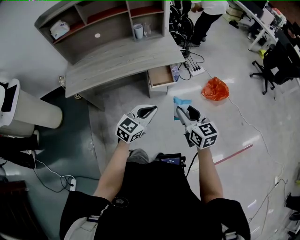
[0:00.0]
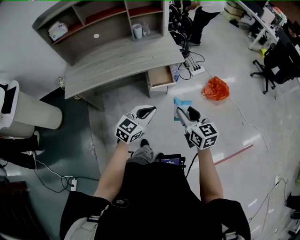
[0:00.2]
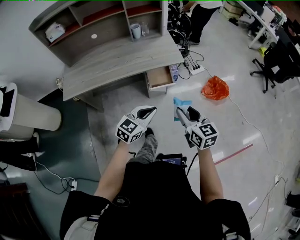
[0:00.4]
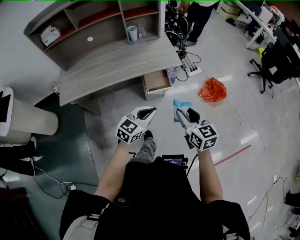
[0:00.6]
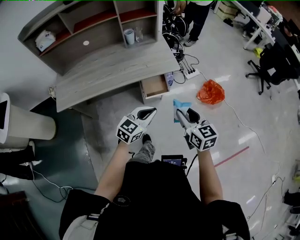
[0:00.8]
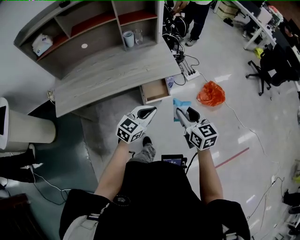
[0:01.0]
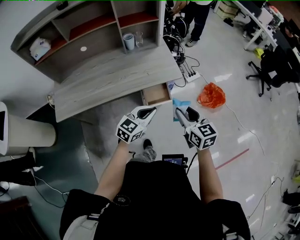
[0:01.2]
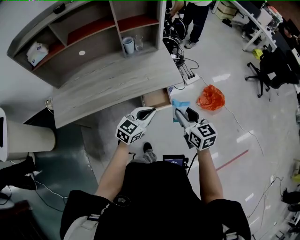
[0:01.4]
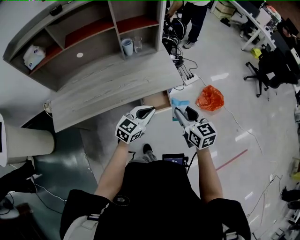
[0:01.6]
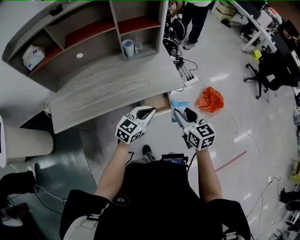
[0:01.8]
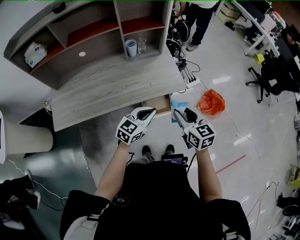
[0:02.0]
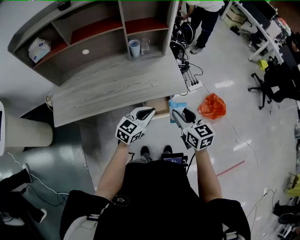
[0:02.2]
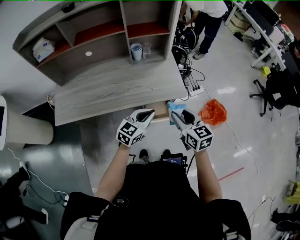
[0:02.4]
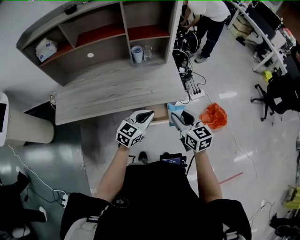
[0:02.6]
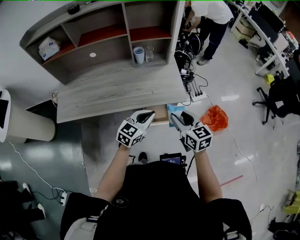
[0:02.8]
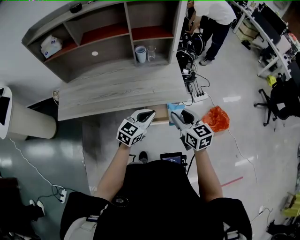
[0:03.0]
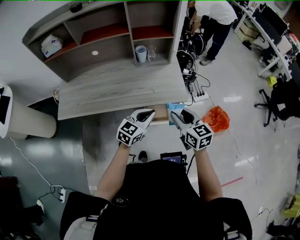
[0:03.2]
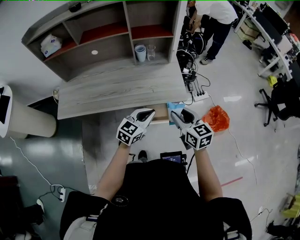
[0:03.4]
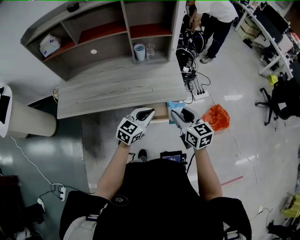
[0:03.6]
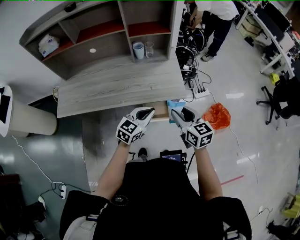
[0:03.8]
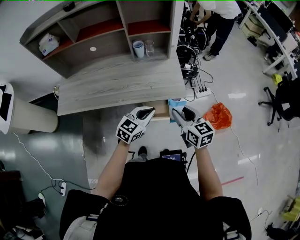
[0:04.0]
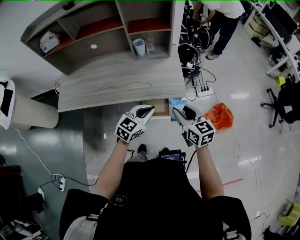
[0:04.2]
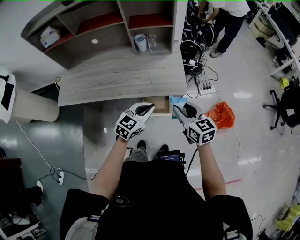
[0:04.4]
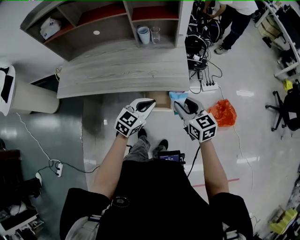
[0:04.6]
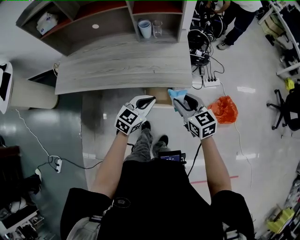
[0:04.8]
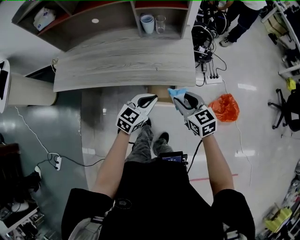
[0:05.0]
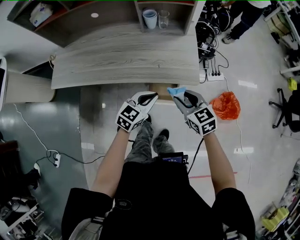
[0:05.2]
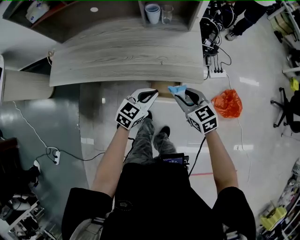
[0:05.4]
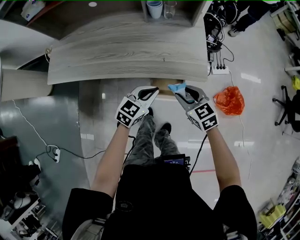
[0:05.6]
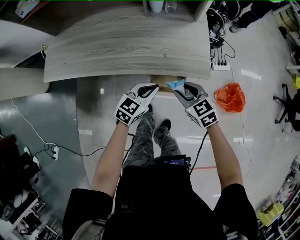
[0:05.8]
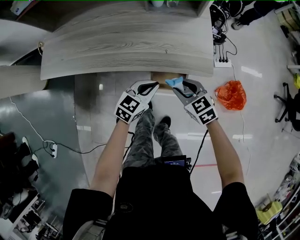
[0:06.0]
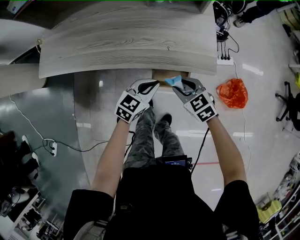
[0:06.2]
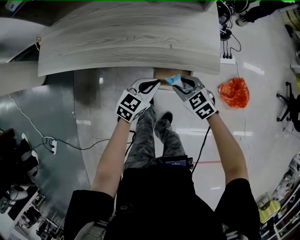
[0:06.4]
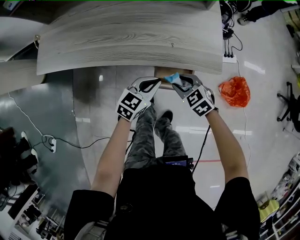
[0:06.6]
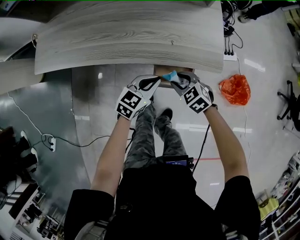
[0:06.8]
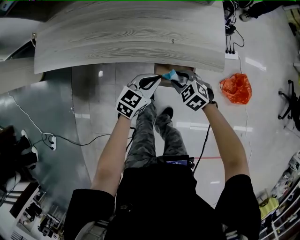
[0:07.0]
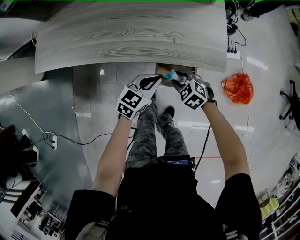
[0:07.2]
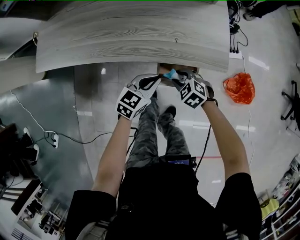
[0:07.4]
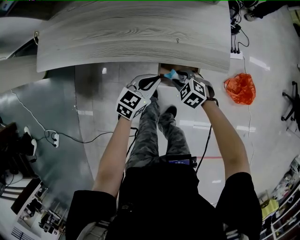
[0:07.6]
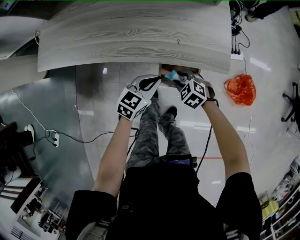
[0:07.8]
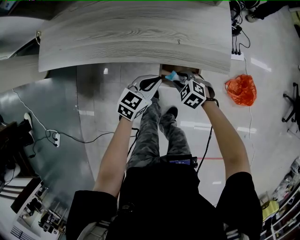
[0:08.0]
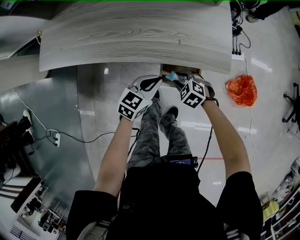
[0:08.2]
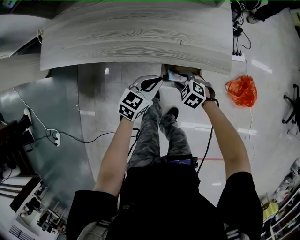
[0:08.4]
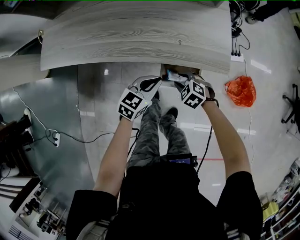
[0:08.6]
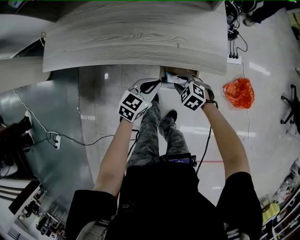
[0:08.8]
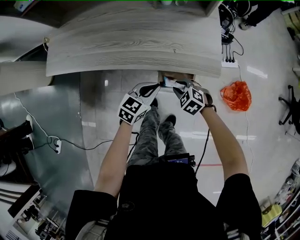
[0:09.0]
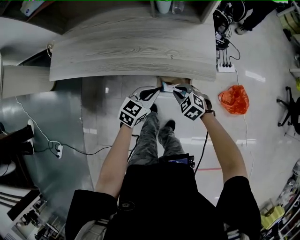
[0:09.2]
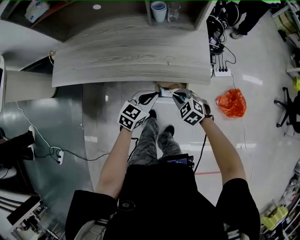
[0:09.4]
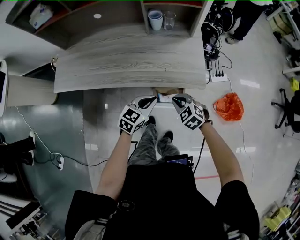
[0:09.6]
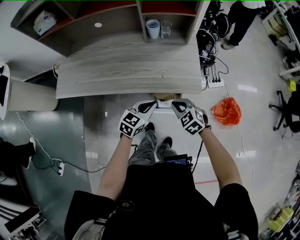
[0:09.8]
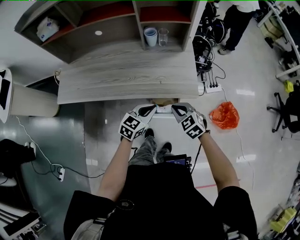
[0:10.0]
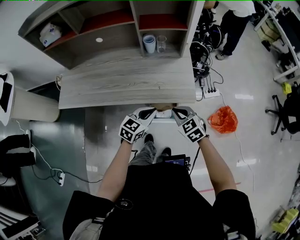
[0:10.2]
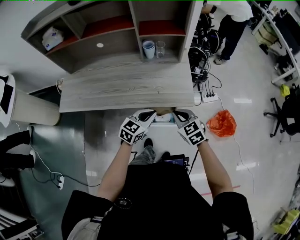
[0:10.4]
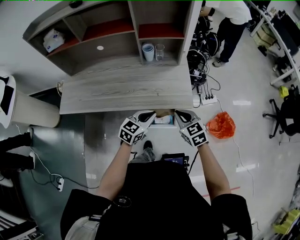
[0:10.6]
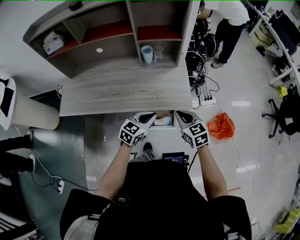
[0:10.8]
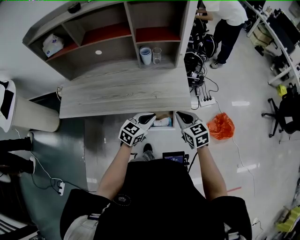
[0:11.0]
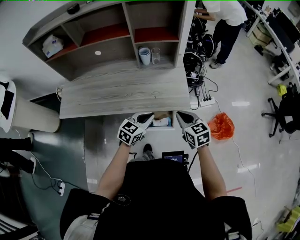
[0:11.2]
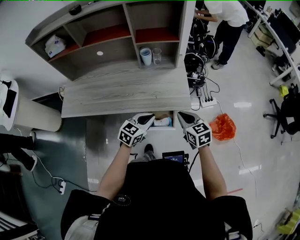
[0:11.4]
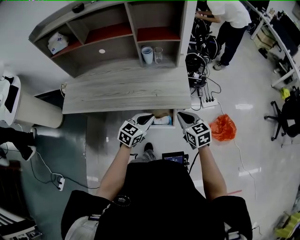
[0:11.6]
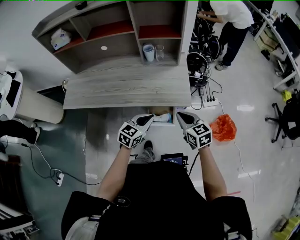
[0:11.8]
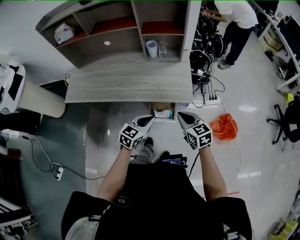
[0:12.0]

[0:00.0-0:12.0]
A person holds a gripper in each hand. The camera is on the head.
0:00.0 to 0:01.6: The two grippers go approximately 25 cm forward.
0:01.6 to 0:03.0: The right gripper travels forward by roughly 5 cm.
0:03.0 to 0:04.4: Both grippers travel together to the right, roughly 5 cm.
0:04.4 to 0:06.0: The left gripper shifts approximately 15 cm downward; the right gripper goes roughly 20 cm downward and to the left, and rotates some 30 degrees.
0:06.0 to 0:07.6: The right gripper heads downward, covering approximately 15 cm, and turns by approximately 30 degrees. Meanwhile the left gripper is displaced downward by some 5 cm.
0:07.6 to 0:09.0: The grippers move only a little.
0:09.0 to 0:10.4: The left gripper moves upward, roughly 15 cm. Meanwhile the right gripper goes some 20 cm upward, turns by some 30 degrees, and closes up.
0:10.4 to 0:12.0: The left gripper moves backward, approximately 5 cm. Meanwhile the right gripper moves to the right, about 5 cm.

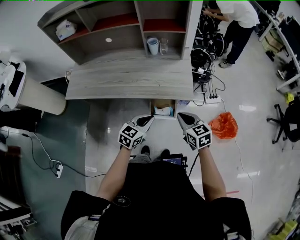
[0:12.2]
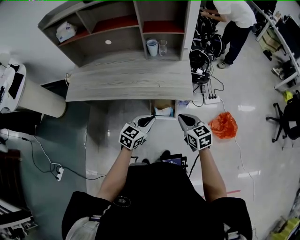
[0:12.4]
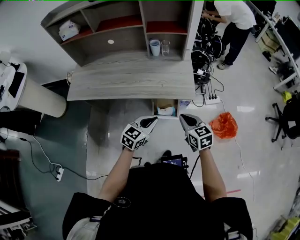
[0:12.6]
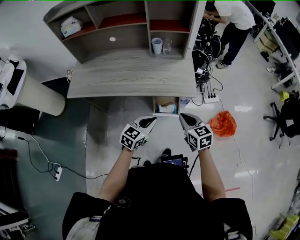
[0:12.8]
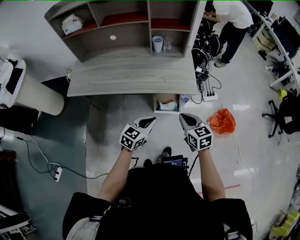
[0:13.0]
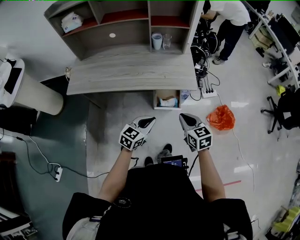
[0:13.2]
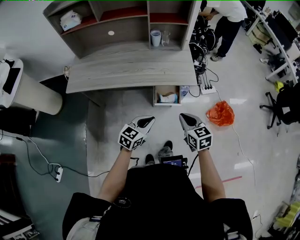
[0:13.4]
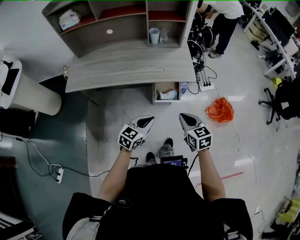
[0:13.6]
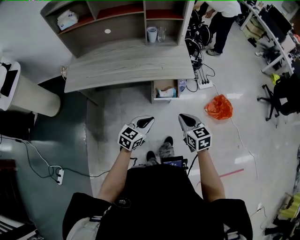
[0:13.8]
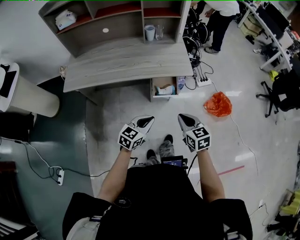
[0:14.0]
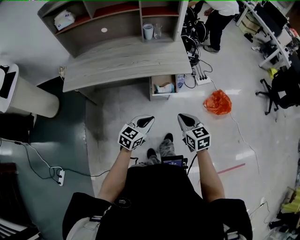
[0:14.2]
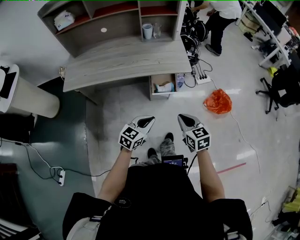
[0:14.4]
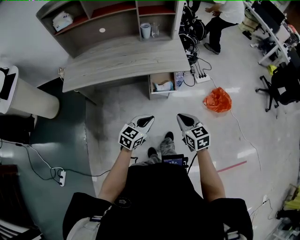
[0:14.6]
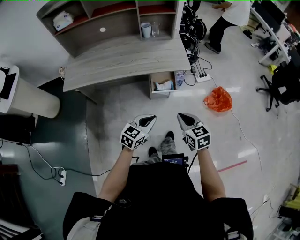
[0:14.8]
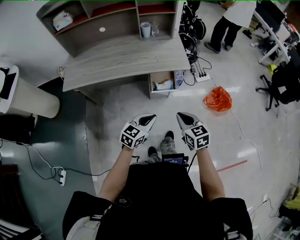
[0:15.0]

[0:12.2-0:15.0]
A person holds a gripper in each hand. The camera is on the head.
0:12.2 to 0:13.6: The left gripper heads backward and to the left, covering some 15 cm. The right gripper travels backward by approximately 15 cm.
0:13.6 to 0:15.0: Both grippers move backward, some 5 cm.

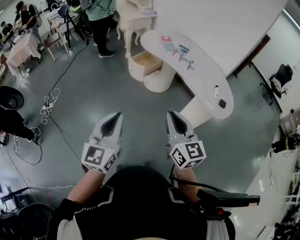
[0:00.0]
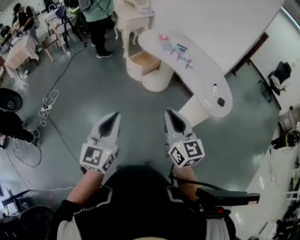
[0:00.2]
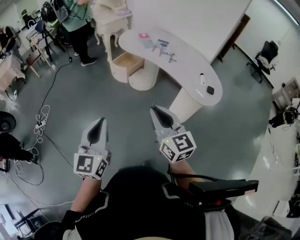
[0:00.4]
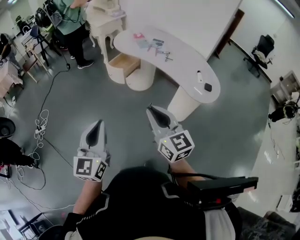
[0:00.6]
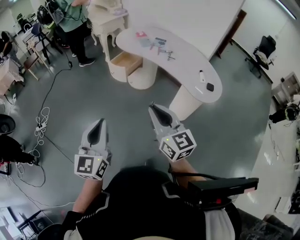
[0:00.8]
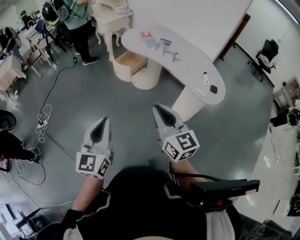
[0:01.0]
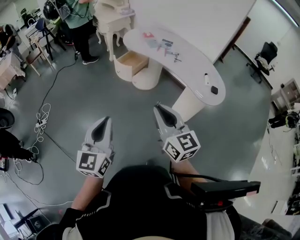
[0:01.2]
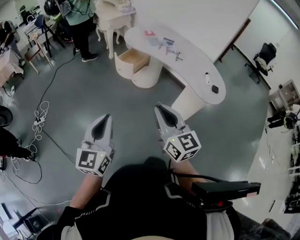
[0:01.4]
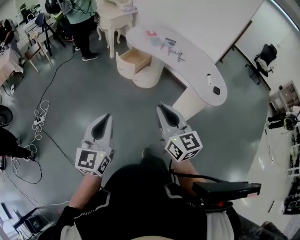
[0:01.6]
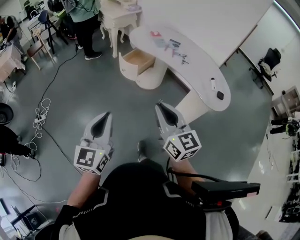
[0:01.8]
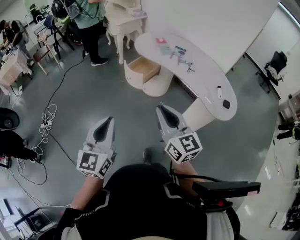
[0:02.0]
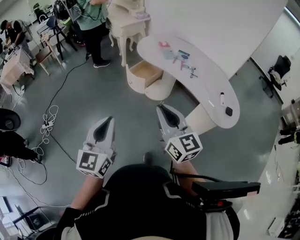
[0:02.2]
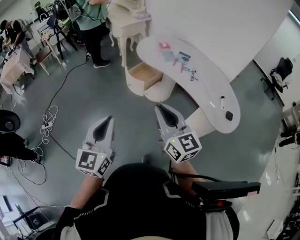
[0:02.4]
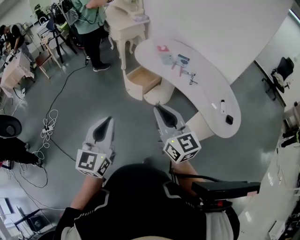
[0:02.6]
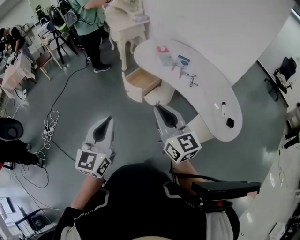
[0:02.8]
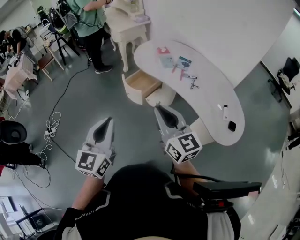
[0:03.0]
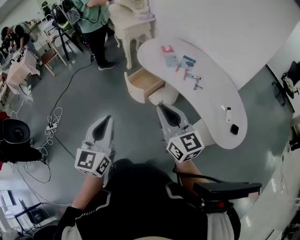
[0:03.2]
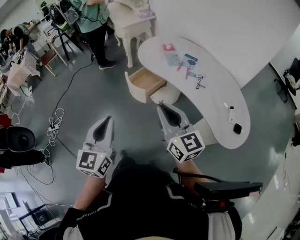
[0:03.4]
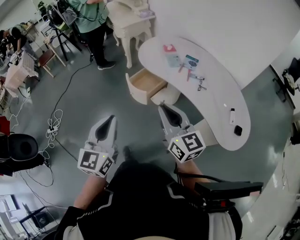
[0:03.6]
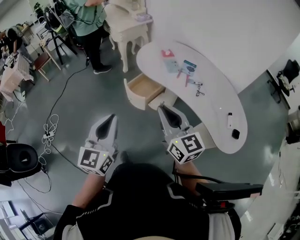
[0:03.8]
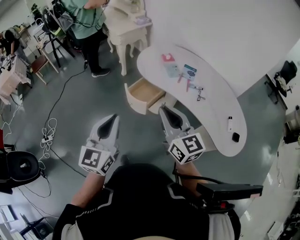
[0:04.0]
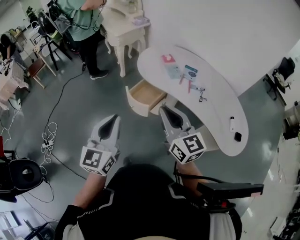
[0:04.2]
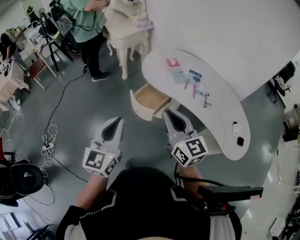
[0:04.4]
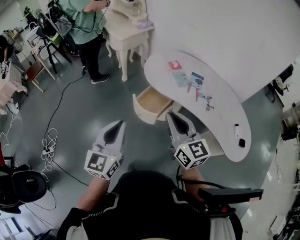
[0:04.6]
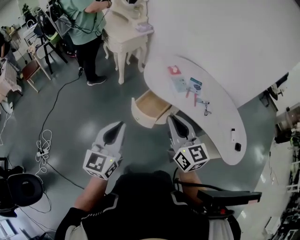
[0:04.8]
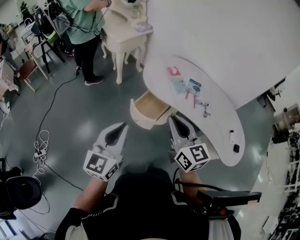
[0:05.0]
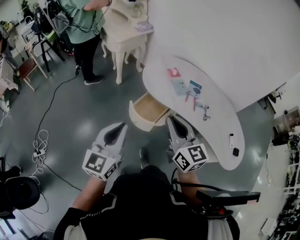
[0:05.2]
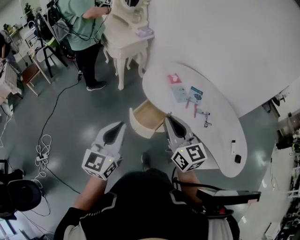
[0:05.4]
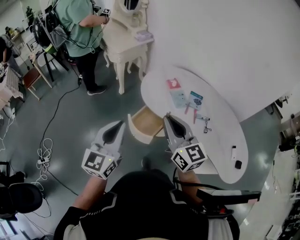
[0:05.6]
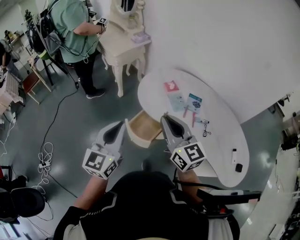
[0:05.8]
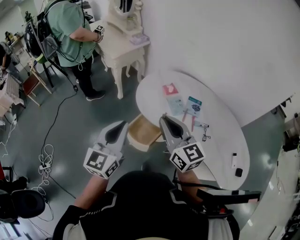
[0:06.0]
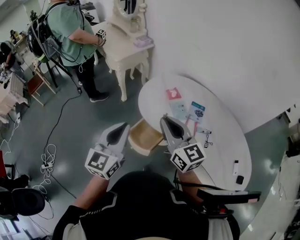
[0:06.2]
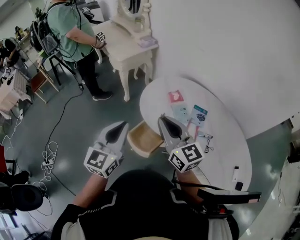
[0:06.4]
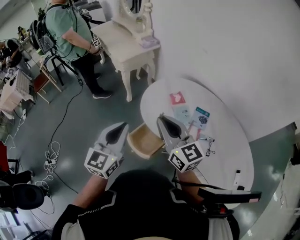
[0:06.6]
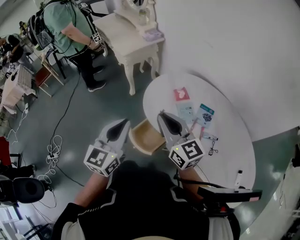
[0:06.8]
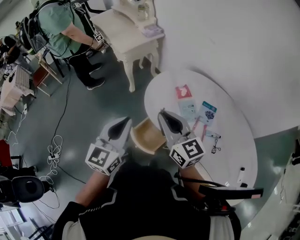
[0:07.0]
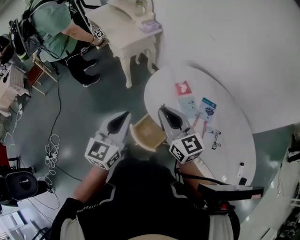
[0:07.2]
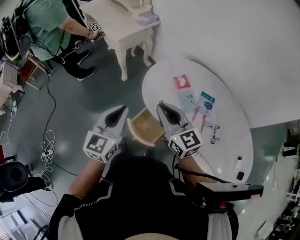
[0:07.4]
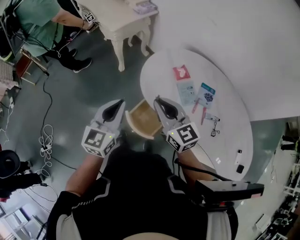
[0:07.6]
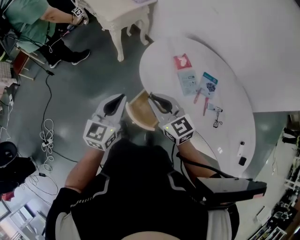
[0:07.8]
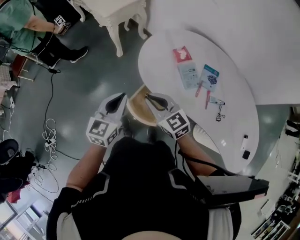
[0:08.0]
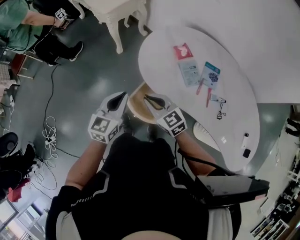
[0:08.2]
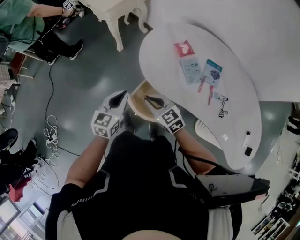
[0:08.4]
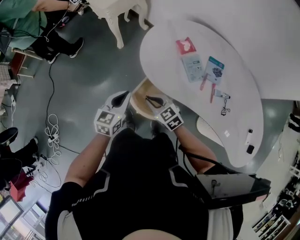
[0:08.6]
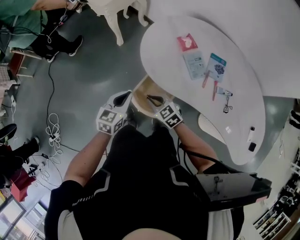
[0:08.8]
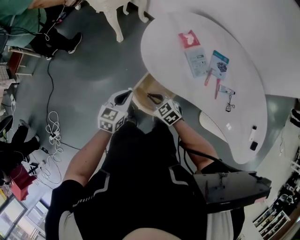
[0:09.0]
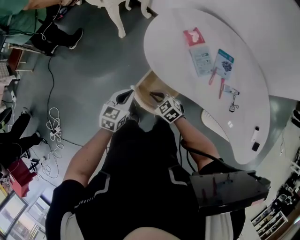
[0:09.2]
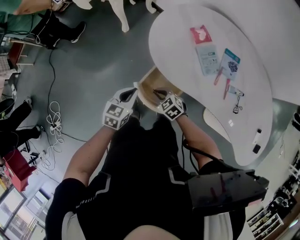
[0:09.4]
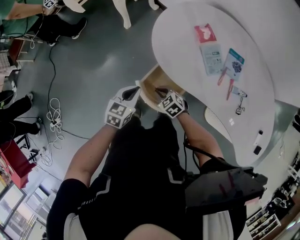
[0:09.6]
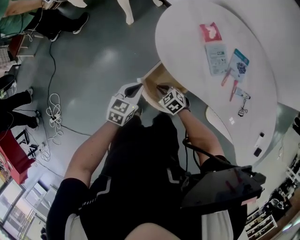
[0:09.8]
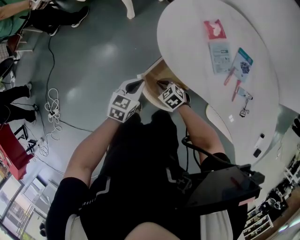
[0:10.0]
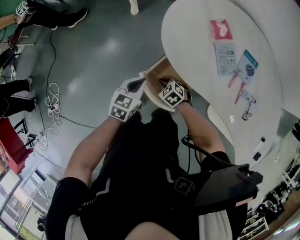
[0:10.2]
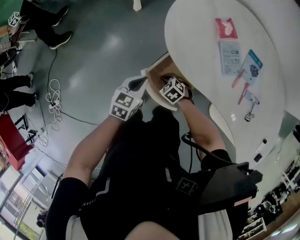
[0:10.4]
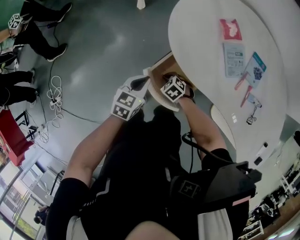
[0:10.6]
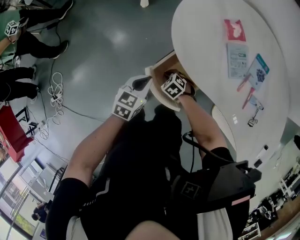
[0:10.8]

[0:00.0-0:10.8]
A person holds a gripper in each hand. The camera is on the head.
0:00.0 to 0:01.6: The two grippers go some 10 cm to the left.
0:01.6 to 0:03.0: The grippers both shift forward by approximately 25 cm.
0:03.0 to 0:04.6: Both grippers move forward and to the left, roughly 20 cm.
0:04.6 to 0:06.2: The grippers both shift forward by approximately 20 cm.
0:06.2 to 0:07.8: The left gripper is displaced forward and downward by roughly 15 cm. Meanwhile the right gripper travels downward, forward and to the left by some 20 cm.
0:07.8 to 0:09.2: The two grippers go some 25 cm downward. The left gripper rotates roughly 20 degrees, while the right gripper angles its fingers downward, by some 30 degrees.
0:09.2 to 0:10.8: The right gripper goes some 15 cm downward, and swivels approximately 20 degrees, while the left gripper goes approximately 5 cm downward.
